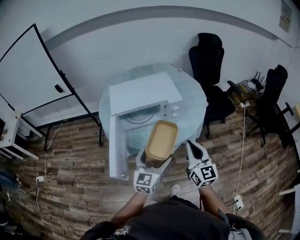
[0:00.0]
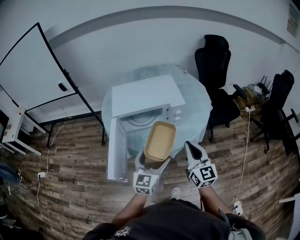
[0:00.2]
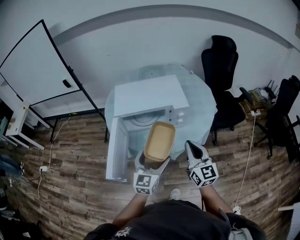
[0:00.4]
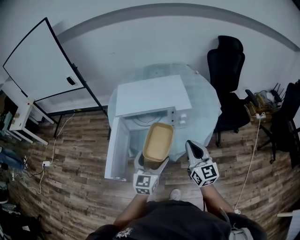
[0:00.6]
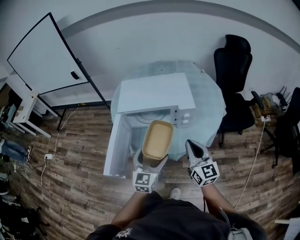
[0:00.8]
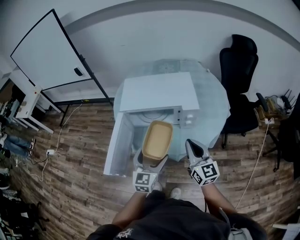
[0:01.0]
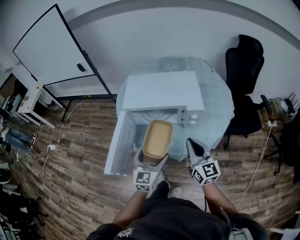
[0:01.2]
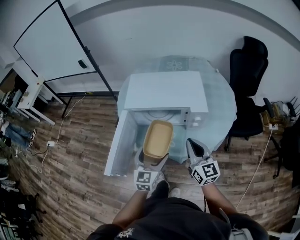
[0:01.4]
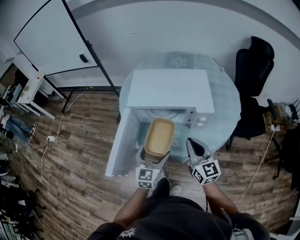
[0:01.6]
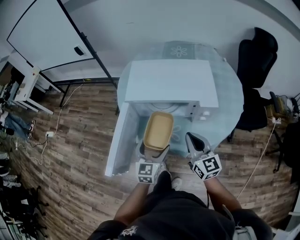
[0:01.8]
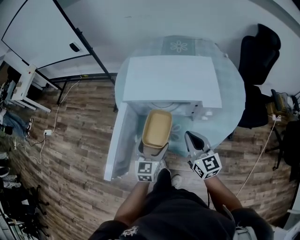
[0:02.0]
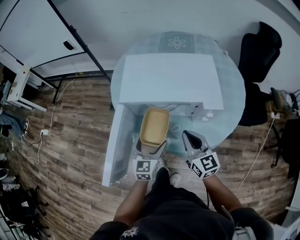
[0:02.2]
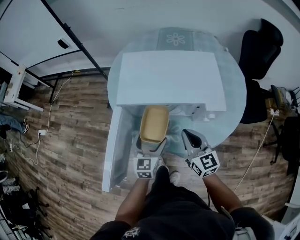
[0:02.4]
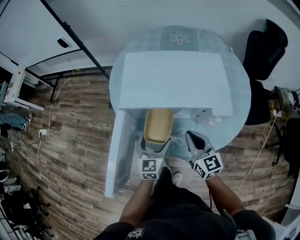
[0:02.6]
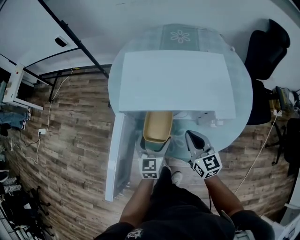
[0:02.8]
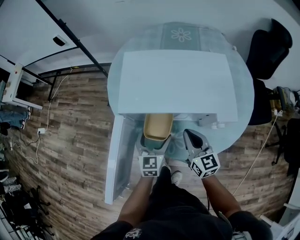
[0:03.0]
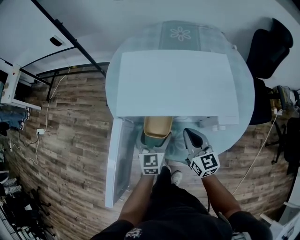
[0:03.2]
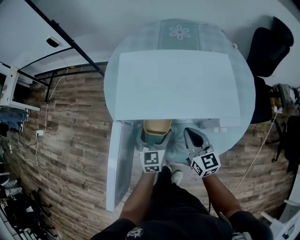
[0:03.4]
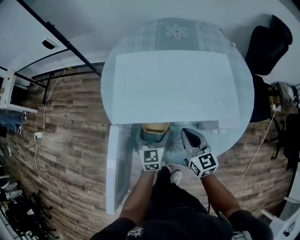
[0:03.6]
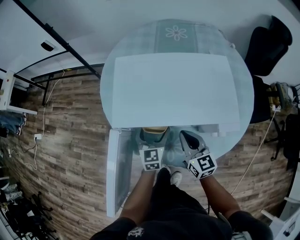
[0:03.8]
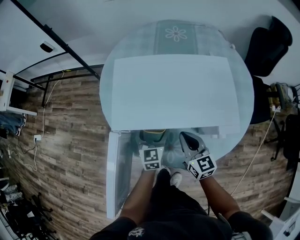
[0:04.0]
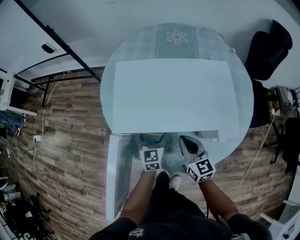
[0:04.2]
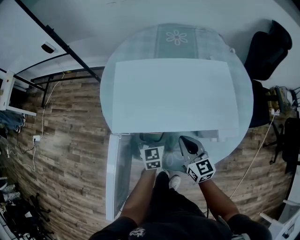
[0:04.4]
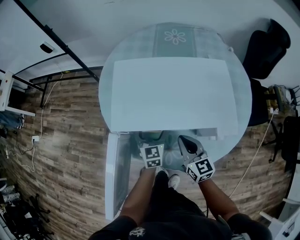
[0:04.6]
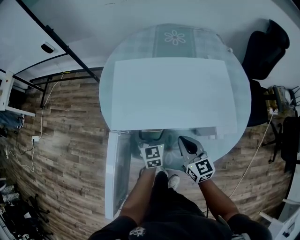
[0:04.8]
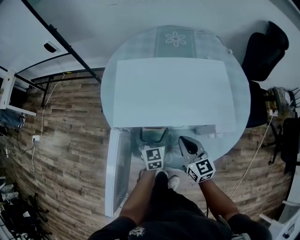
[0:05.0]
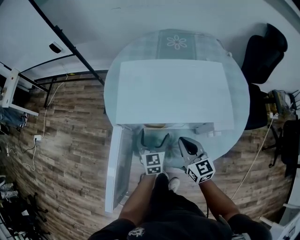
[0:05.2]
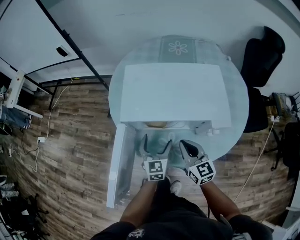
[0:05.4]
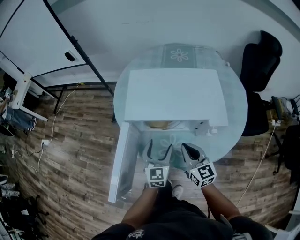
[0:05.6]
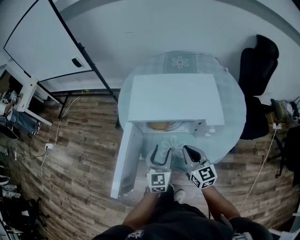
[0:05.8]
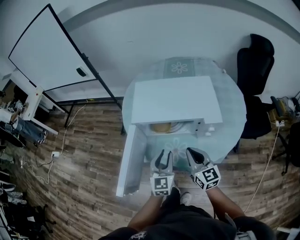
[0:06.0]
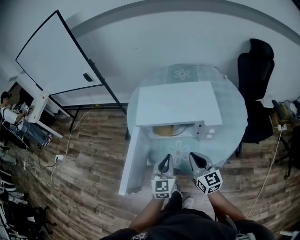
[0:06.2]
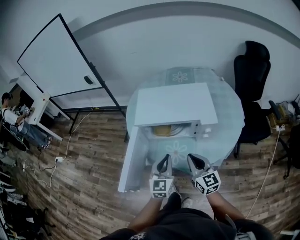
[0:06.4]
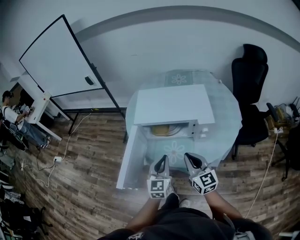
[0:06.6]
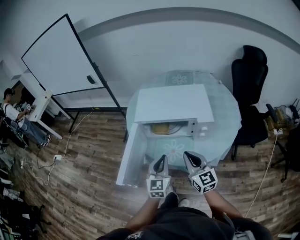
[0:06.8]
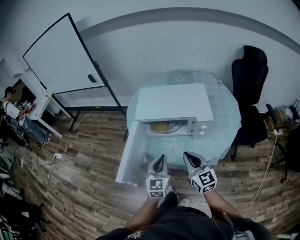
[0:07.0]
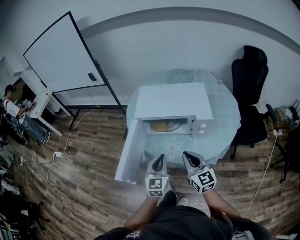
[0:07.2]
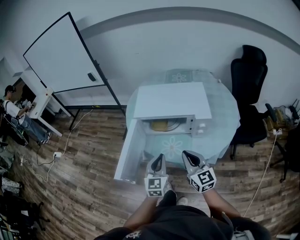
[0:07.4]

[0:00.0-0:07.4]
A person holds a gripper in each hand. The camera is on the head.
0:00.0 to 0:01.4: The two grippers go roughly 15 cm forward and downward. The left gripper rotates roughly 20 degrees; the right gripper changes its angle by approximately 20 degrees.
0:01.4 to 0:03.0: Both grippers travel together forward and downward, about 20 cm.
0:03.0 to 0:04.4: The right gripper moves roughly 5 cm. The left gripper goes about 10 cm forward.
0:04.4 to 0:06.0: The two grippers go some 20 cm backward and upward. The left gripper closes its fingers.
0:06.0 to 0:07.4: The right gripper goes about 10 cm backward and upward. Meanwhile the left gripper shifts approximately 10 cm backward.

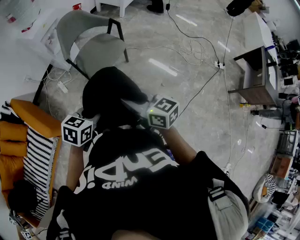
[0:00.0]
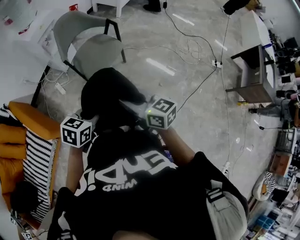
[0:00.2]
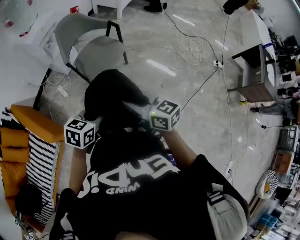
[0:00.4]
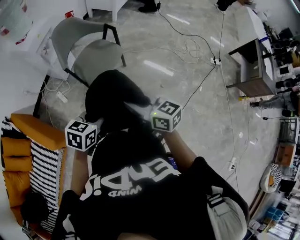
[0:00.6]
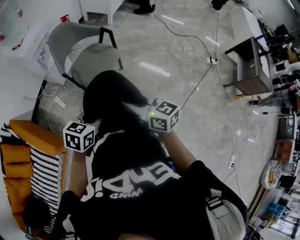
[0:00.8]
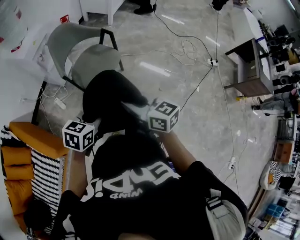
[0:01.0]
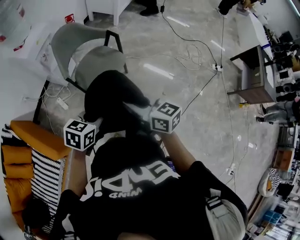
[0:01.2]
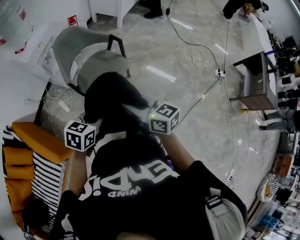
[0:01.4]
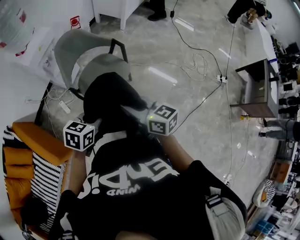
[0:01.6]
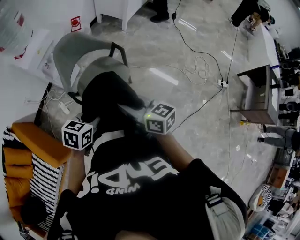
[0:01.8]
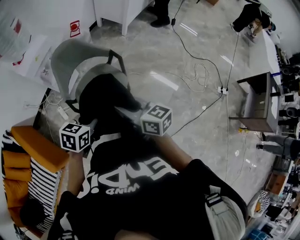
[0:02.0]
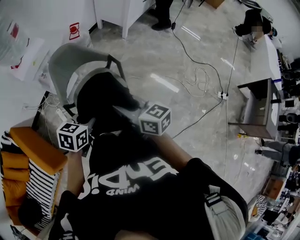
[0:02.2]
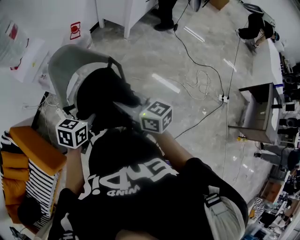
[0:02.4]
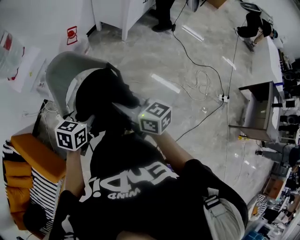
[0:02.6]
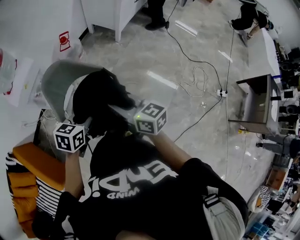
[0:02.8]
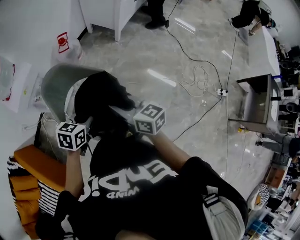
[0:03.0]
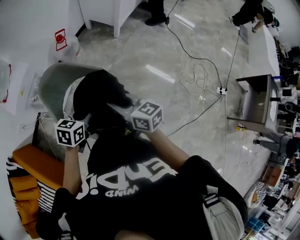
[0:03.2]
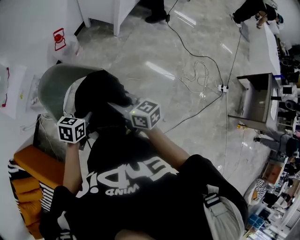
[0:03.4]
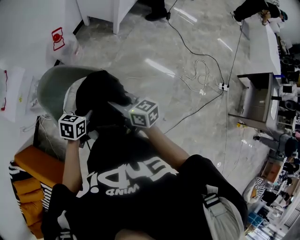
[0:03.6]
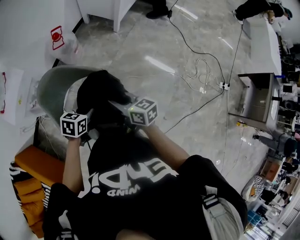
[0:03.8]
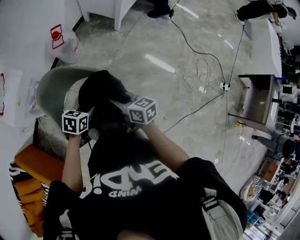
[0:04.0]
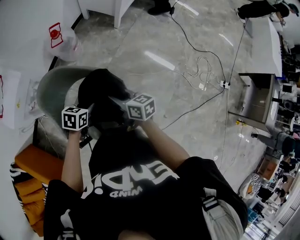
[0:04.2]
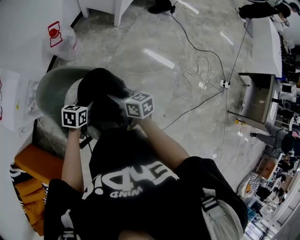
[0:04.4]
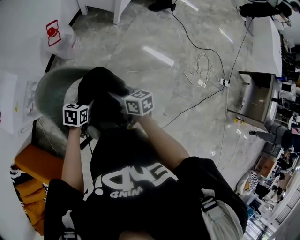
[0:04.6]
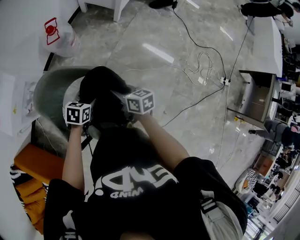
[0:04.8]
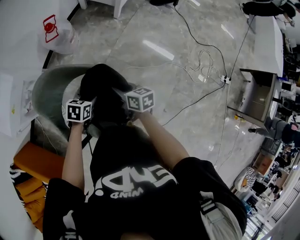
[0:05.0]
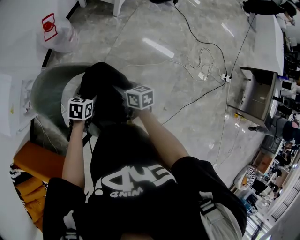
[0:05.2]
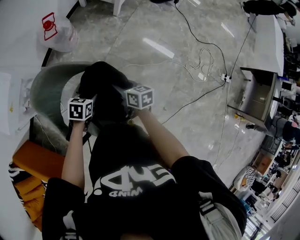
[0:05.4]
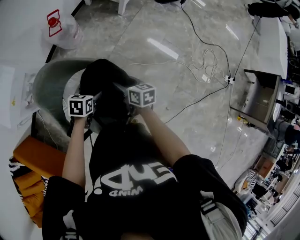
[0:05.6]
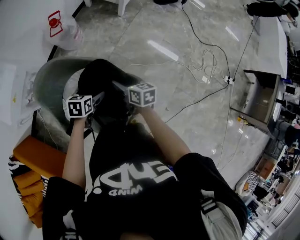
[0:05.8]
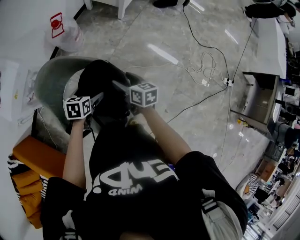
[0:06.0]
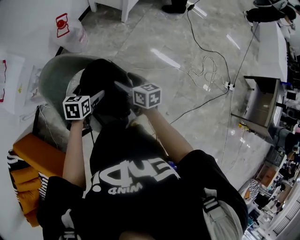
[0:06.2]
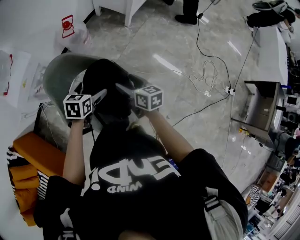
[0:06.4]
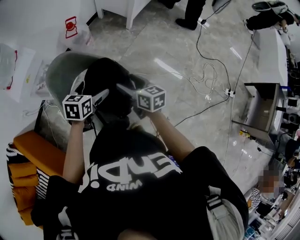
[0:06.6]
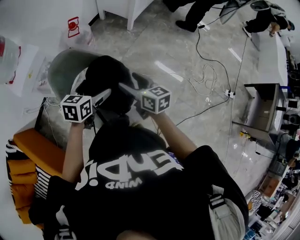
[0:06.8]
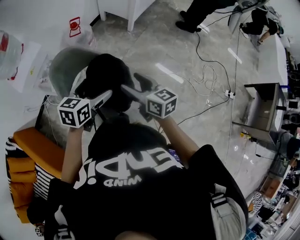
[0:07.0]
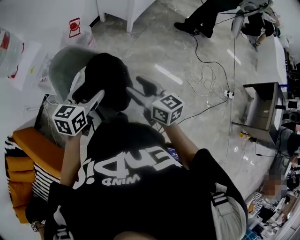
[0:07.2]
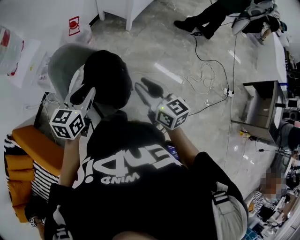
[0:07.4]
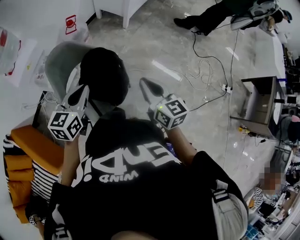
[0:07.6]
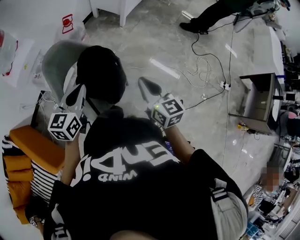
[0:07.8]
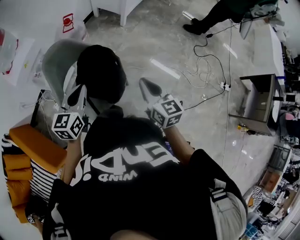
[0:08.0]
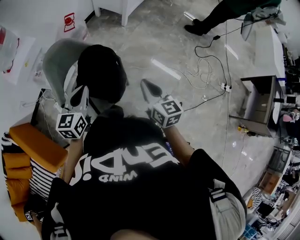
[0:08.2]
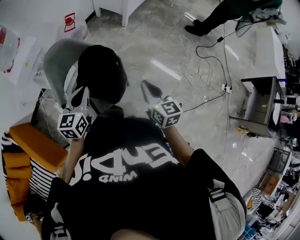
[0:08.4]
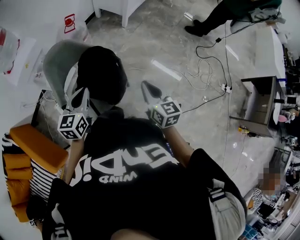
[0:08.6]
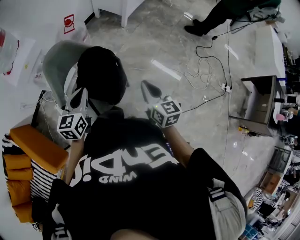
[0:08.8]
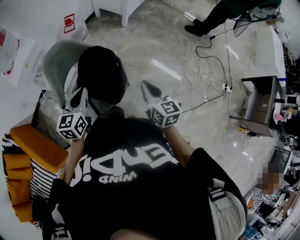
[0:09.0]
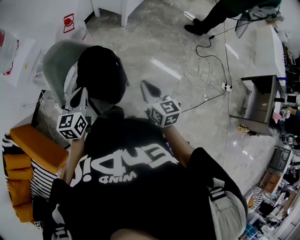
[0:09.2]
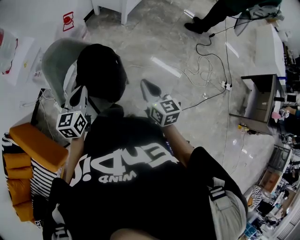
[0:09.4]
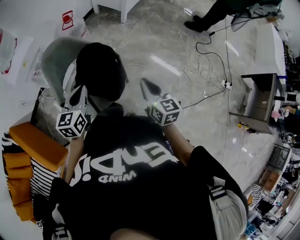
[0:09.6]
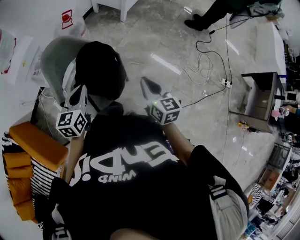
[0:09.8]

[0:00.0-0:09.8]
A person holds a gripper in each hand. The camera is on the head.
0:00.0 to 0:01.4: The grippers both shift forward by approximately 20 cm.
0:01.4 to 0:02.8: The grippers both shift forward by some 35 cm.
0:02.8 to 0:04.2: Both grippers move forward and downward, approximately 25 cm.
0:04.2 to 0:05.6: The left gripper shifts roughly 10 cm downward, and opens up, while the right gripper goes about 15 cm downward and forward, and opens its fingers.
0:05.6 to 0:07.0: The two grippers go some 30 cm upward and backward. The left gripper rotates some 30 degrees, and opens. The right gripper turns by approximately 30 degrees.
0:07.0 to 0:08.4: The right gripper goes about 15 cm to the right and backward, and closes its fingers. The left gripper shifts approximately 10 cm backward, and closes its fingers.
0:08.4 to 0:09.8: Both grippers stay put.

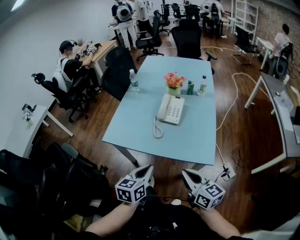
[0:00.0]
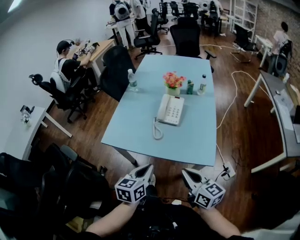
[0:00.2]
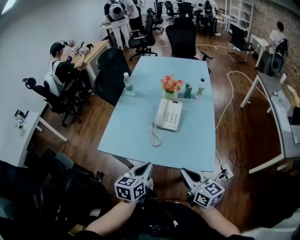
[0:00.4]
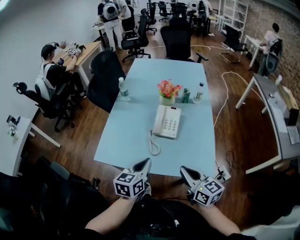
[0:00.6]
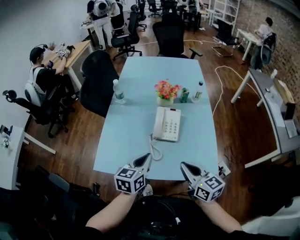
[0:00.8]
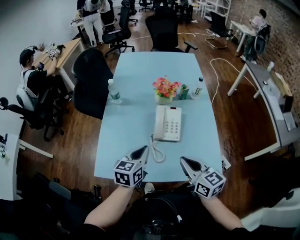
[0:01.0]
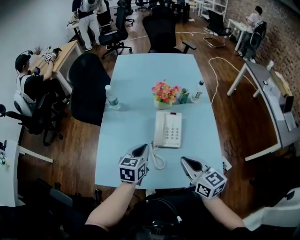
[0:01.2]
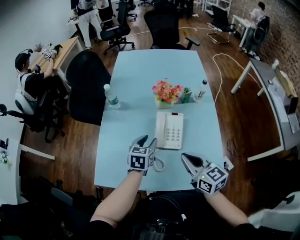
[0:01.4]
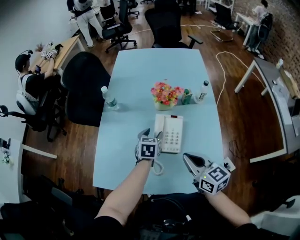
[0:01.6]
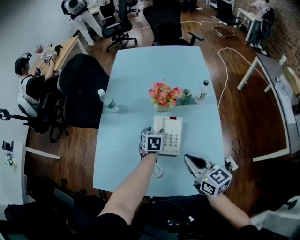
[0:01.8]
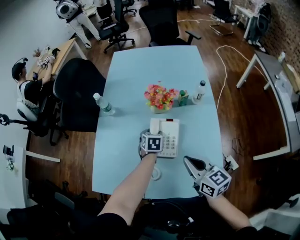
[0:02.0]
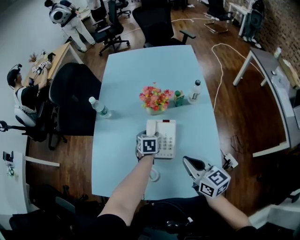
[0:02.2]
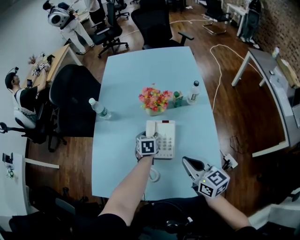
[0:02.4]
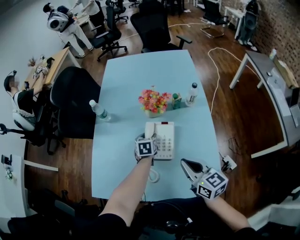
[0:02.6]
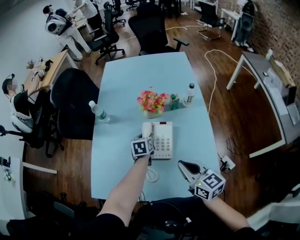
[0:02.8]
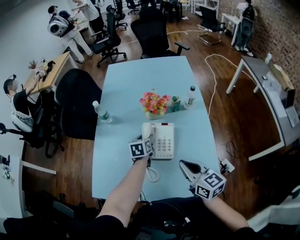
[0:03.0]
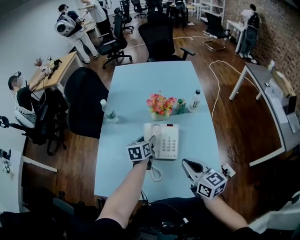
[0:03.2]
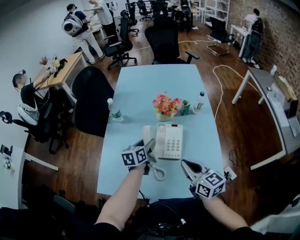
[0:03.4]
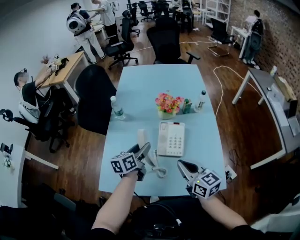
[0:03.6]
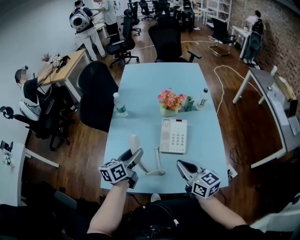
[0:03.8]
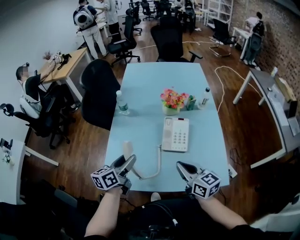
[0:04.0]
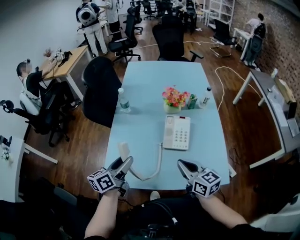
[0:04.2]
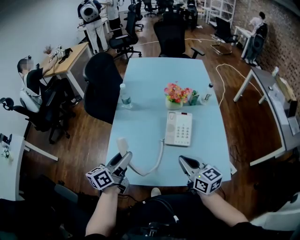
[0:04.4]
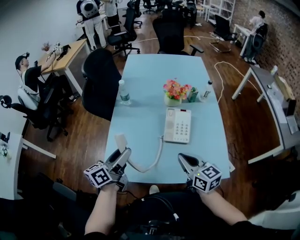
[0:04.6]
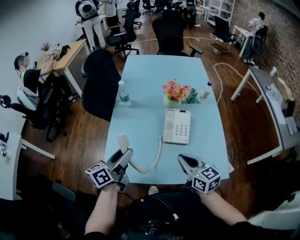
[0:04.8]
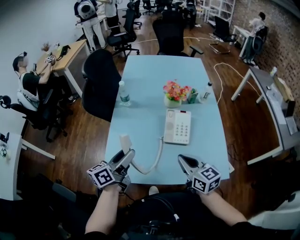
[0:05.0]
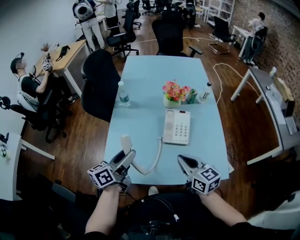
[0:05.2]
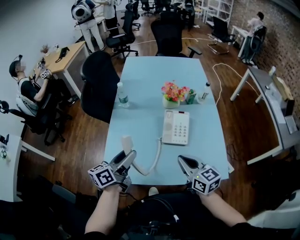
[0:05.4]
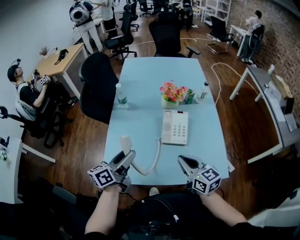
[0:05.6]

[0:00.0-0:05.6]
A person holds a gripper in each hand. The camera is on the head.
0:00.0 to 0:01.4: Both grippers move forward, roughly 35 cm. The left gripper opens up.
0:01.4 to 0:02.8: The left gripper goes some 15 cm forward, downward and to the right.
0:02.8 to 0:04.2: The left gripper shifts approximately 35 cm to the left, backward and upward, and angles its fingers upward, by approximately 40 degrees; the right gripper shifts approximately 10 cm to the left and backward.
0:04.2 to 0:05.6: The grippers move only a little.

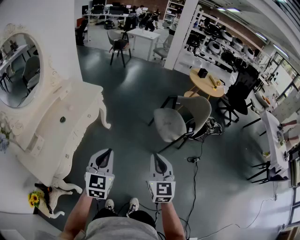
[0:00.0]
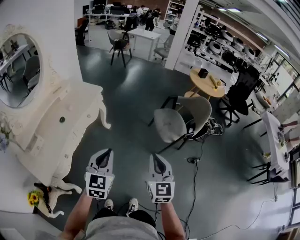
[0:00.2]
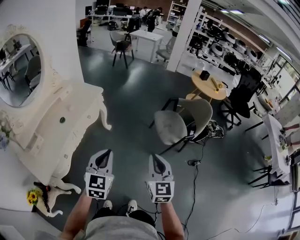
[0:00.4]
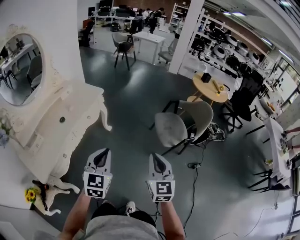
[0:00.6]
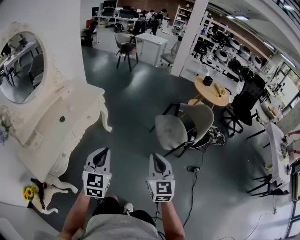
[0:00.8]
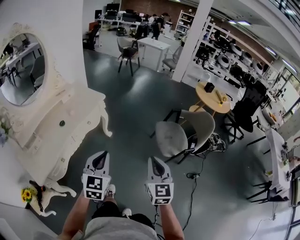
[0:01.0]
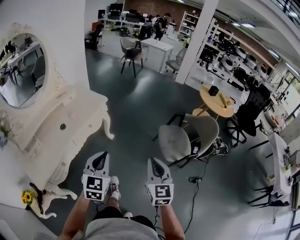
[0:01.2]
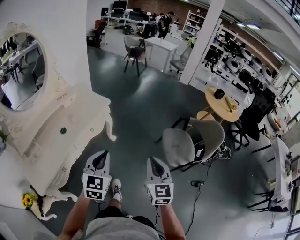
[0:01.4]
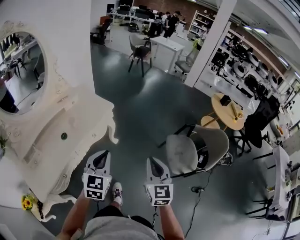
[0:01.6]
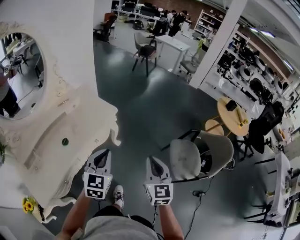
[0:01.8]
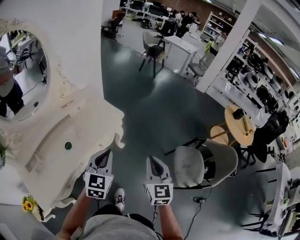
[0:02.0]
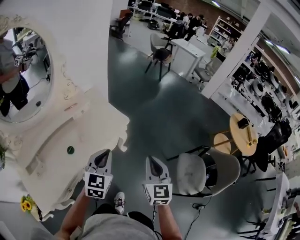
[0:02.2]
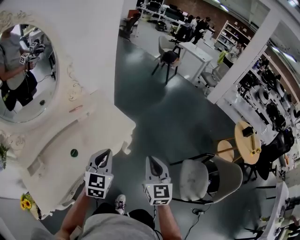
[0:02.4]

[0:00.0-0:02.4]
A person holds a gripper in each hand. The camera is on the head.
0:00.0 to 0:01.2: Both grippers travel together forward, roughly 10 cm.
0:01.2 to 0:02.4: The grippers both shift forward and to the left by approximately 40 cm.
